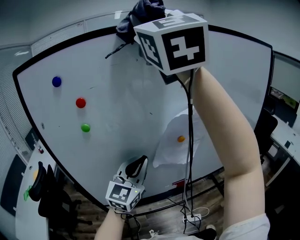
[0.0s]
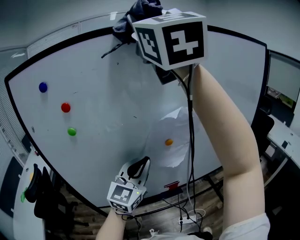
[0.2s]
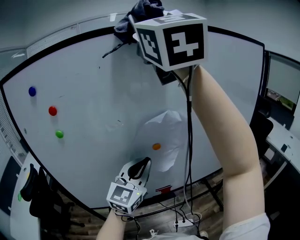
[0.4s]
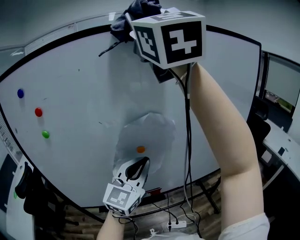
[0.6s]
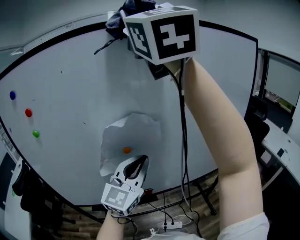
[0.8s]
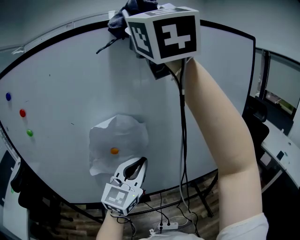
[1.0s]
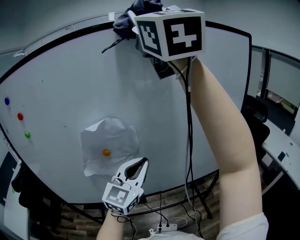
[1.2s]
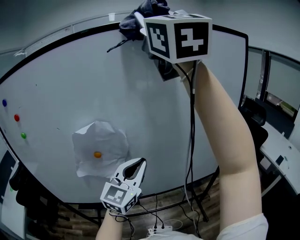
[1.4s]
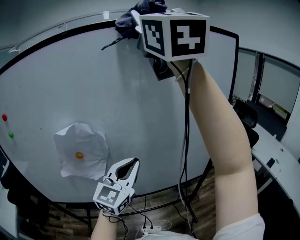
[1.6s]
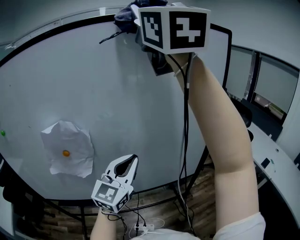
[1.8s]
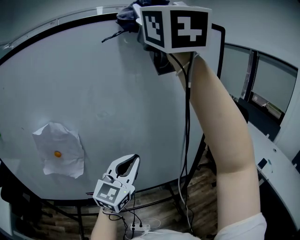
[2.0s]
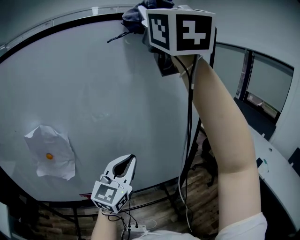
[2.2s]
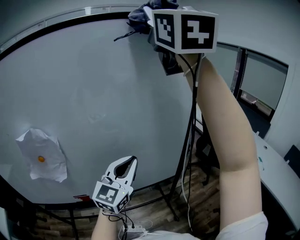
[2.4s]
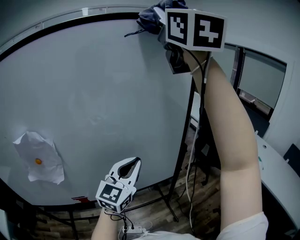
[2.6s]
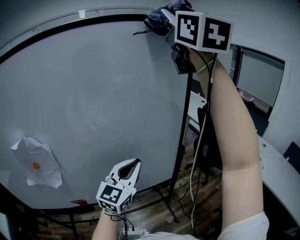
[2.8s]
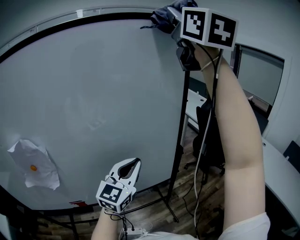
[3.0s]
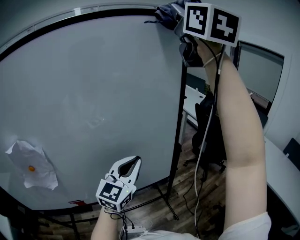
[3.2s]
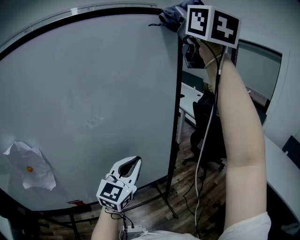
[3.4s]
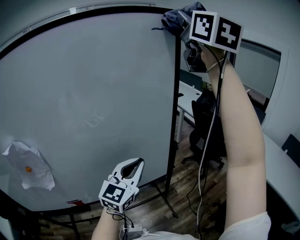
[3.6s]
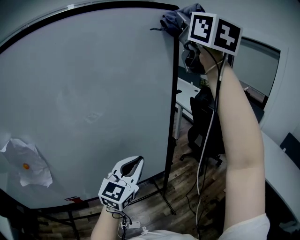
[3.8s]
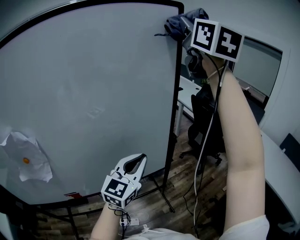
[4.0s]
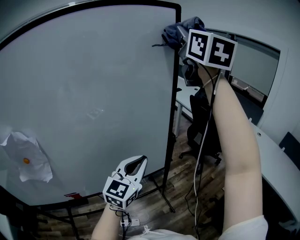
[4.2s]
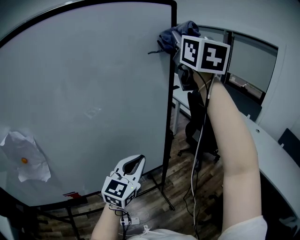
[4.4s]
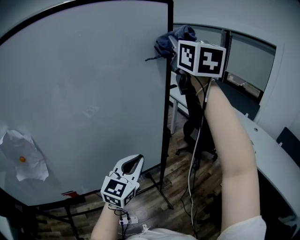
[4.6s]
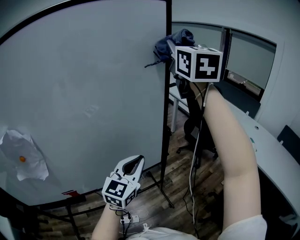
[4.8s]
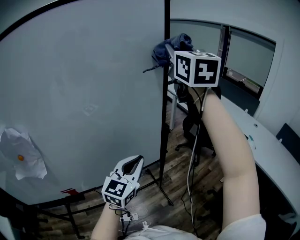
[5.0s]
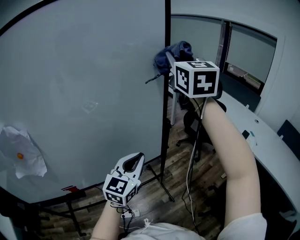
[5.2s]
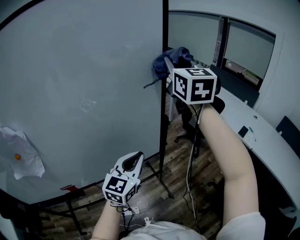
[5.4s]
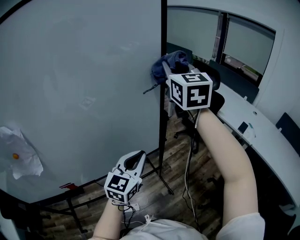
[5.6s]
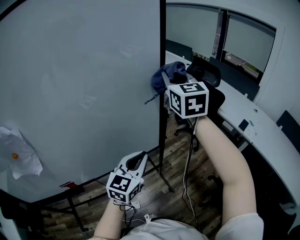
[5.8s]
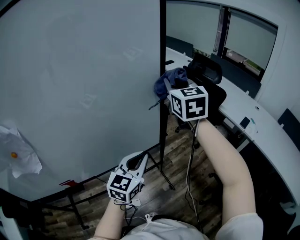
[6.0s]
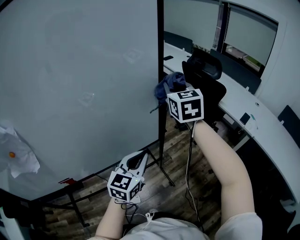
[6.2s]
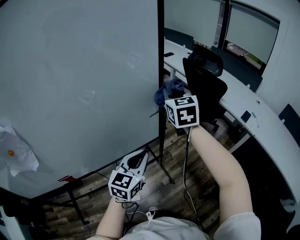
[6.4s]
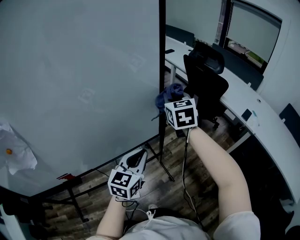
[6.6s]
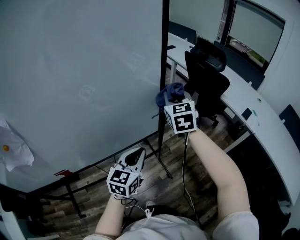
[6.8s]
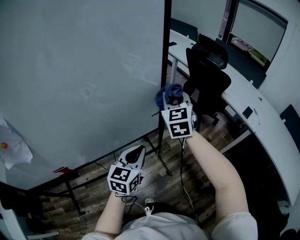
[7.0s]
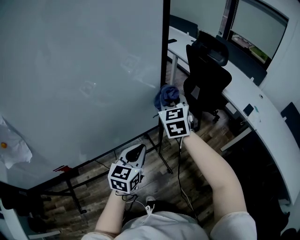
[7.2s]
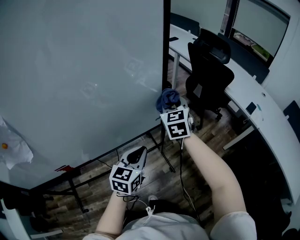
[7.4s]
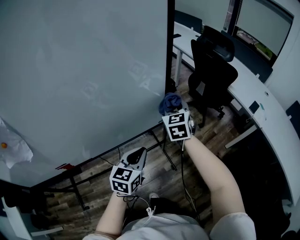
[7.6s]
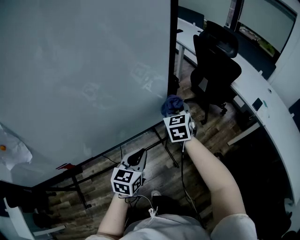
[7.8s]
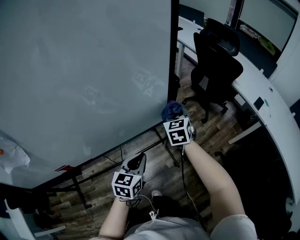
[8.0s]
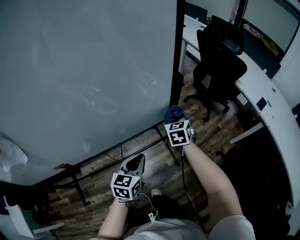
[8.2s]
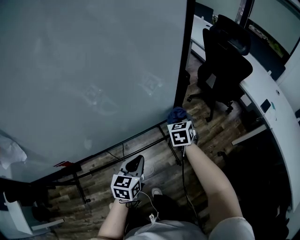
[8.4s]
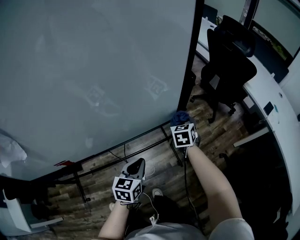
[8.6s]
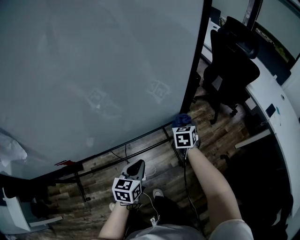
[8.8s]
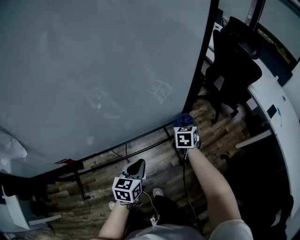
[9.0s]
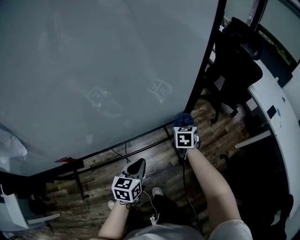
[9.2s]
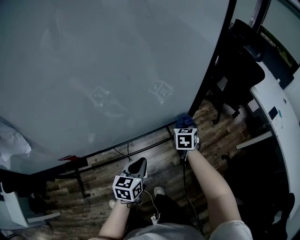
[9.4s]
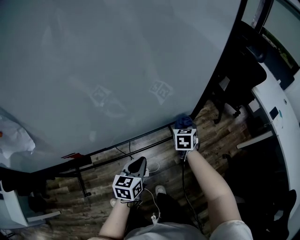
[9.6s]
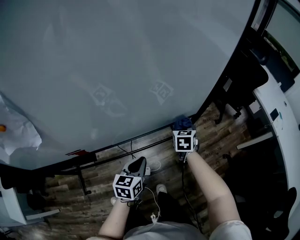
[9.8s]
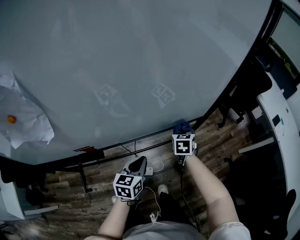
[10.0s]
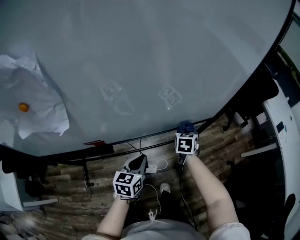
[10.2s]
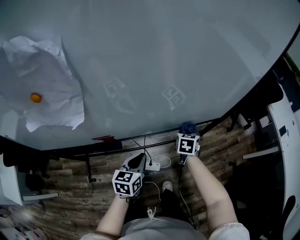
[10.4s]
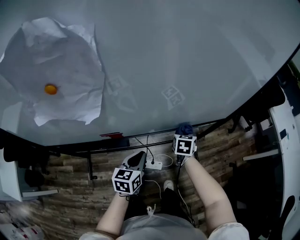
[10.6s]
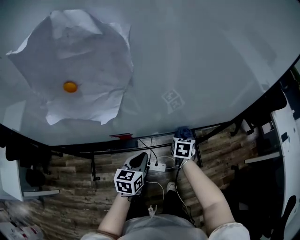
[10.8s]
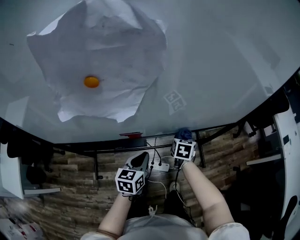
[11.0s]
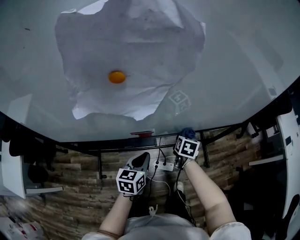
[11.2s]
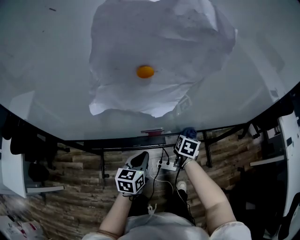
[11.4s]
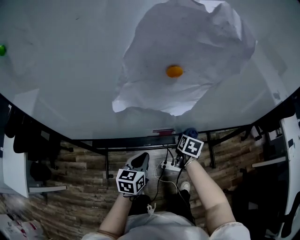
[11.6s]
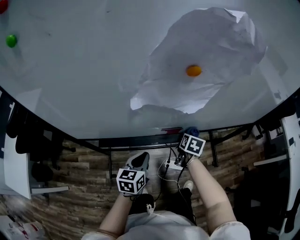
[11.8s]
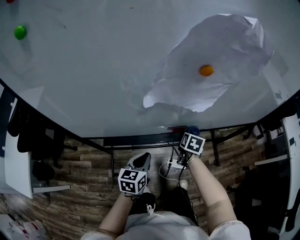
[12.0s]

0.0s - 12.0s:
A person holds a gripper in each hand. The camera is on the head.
0.0s - 1.6s: Both grippers move to the right, approximately 35 cm.
1.6s - 3.0s: Both grippers travel together to the right, approximately 25 cm.
3.0s - 4.4s: The left gripper shifts about 10 cm to the right and downward, while the right gripper heads downward and to the right, covering approximately 15 cm.
4.4s - 6.0s: The right gripper shifts some 30 cm downward, and turns by approximately 20 degrees; the left gripper shifts approximately 10 cm downward.
6.0s - 7.6s: The left gripper moves downward, some 10 cm, while the right gripper heads downward, covering approximately 25 cm.
7.6s - 9.0s: The right gripper is displaced downward by some 20 cm, and rotates roughly 20 degrees, while the left gripper moves downward and to the left, about 15 cm.
9.0s - 10.4s: Both grippers travel together to the left and backward, some 20 cm.
10.4s - 12.0s: The two grippers go approximately 30 cm to the left and backward.

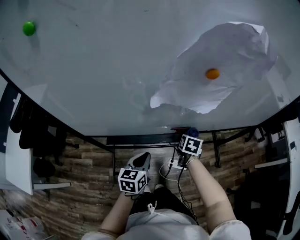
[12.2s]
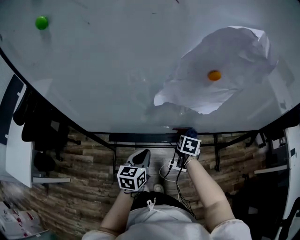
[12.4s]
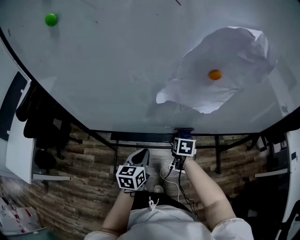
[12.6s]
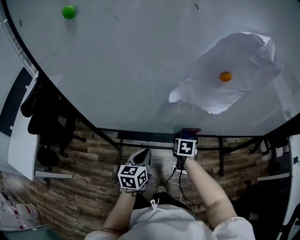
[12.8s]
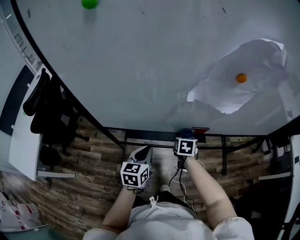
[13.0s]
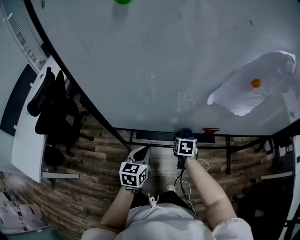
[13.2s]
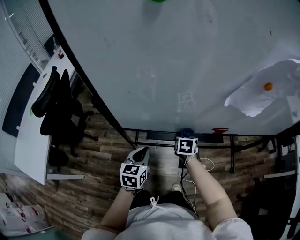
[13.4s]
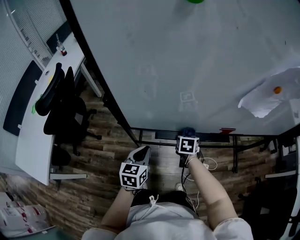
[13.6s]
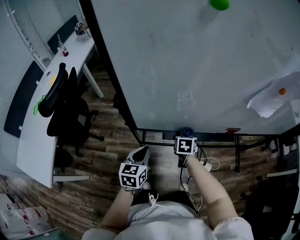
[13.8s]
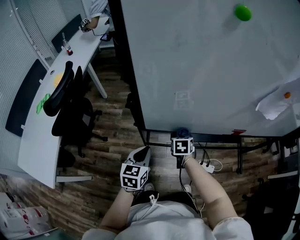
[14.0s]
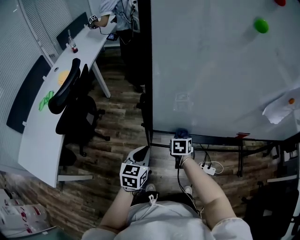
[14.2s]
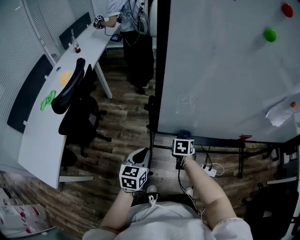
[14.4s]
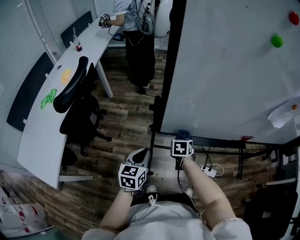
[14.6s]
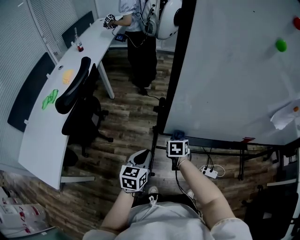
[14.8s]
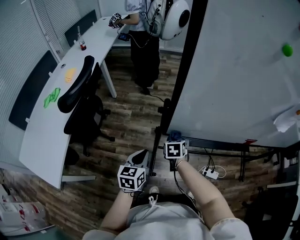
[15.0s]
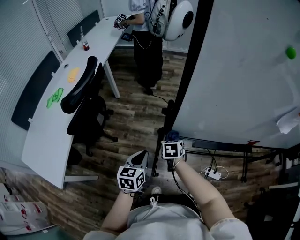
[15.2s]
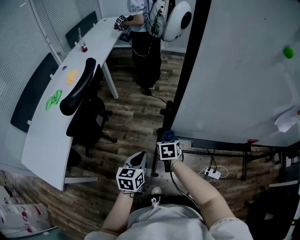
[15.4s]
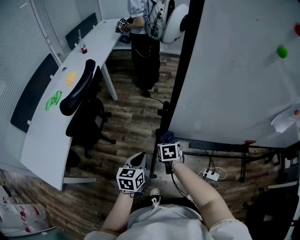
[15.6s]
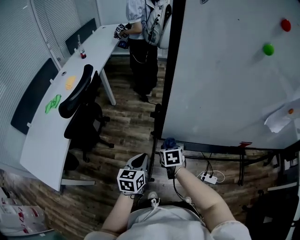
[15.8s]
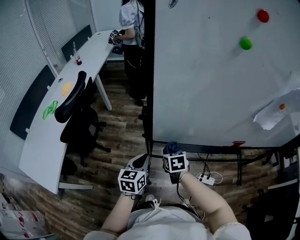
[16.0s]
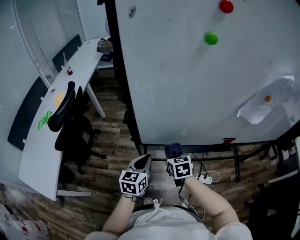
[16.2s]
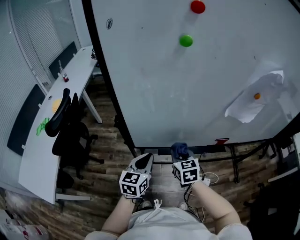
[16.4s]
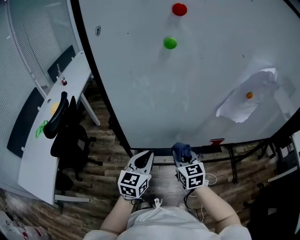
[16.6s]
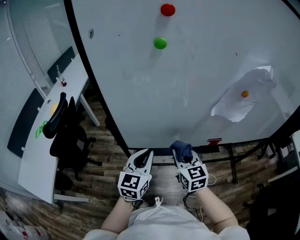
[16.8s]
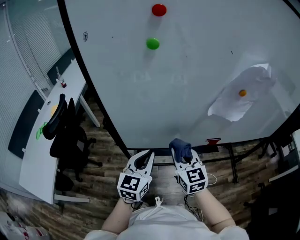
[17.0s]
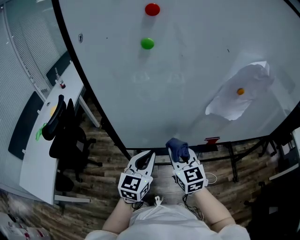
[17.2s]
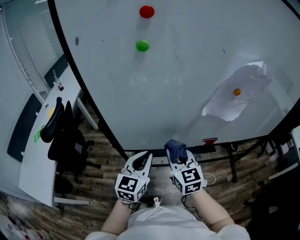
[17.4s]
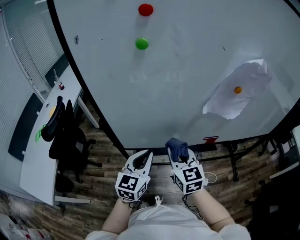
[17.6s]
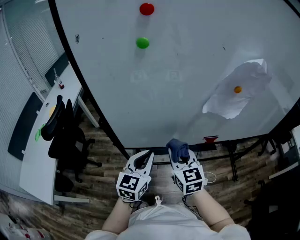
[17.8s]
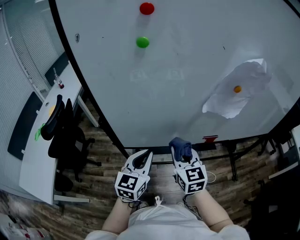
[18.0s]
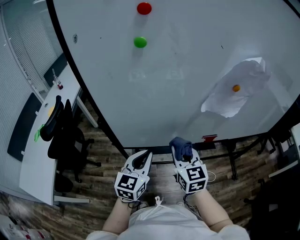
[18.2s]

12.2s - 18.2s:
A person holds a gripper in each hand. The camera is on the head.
12.2s - 13.8s: The grippers both shift to the left by approximately 30 cm. The right gripper turns by some 20 degrees.
13.8s - 15.2s: The left gripper goes about 15 cm to the left, while the right gripper is displaced to the left by approximately 25 cm.
15.2s - 16.6s: The grippers both shift to the right and upward by roughly 30 cm. The left gripper swivels about 30 degrees; the right gripper turns by some 30 degrees.
16.6s - 18.2s: The right gripper is displaced upward by some 5 cm, while the left gripper ends up about 5 cm from where it was.

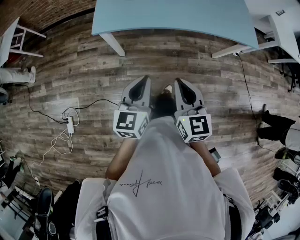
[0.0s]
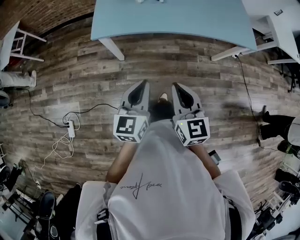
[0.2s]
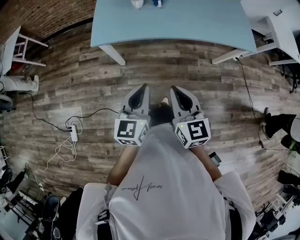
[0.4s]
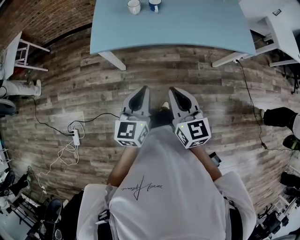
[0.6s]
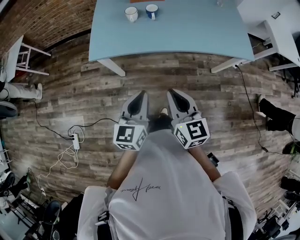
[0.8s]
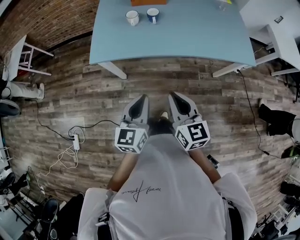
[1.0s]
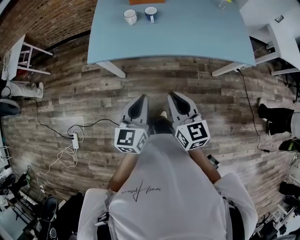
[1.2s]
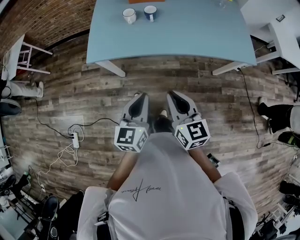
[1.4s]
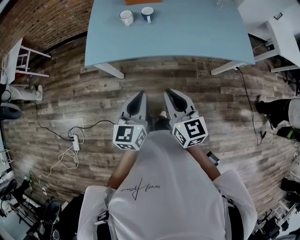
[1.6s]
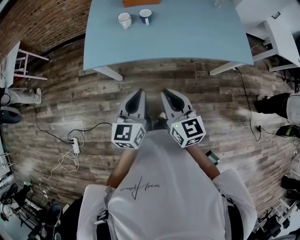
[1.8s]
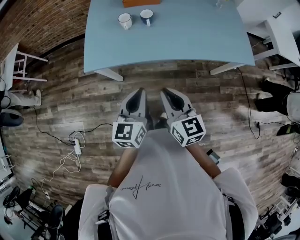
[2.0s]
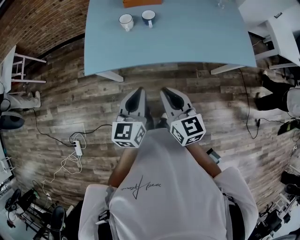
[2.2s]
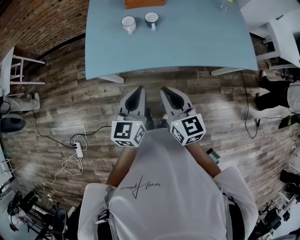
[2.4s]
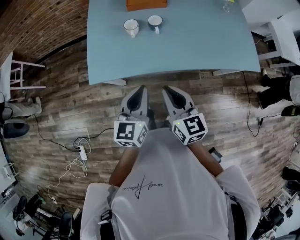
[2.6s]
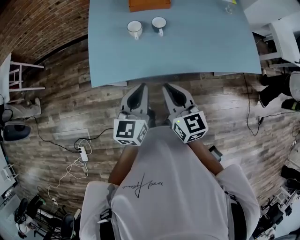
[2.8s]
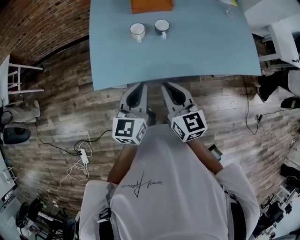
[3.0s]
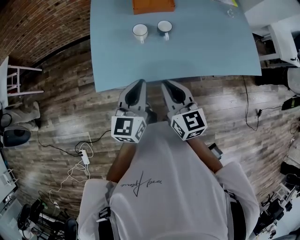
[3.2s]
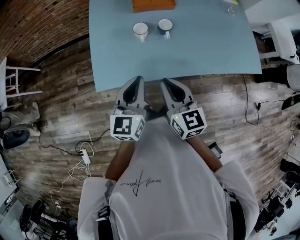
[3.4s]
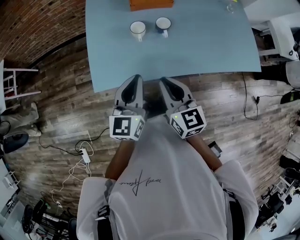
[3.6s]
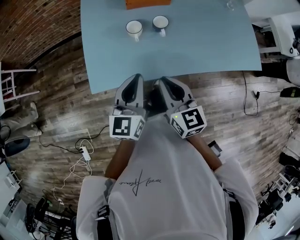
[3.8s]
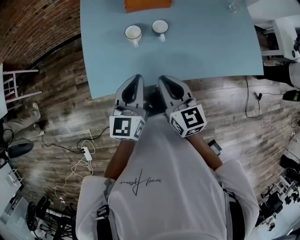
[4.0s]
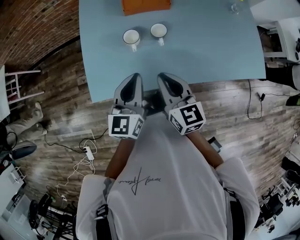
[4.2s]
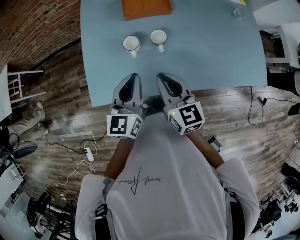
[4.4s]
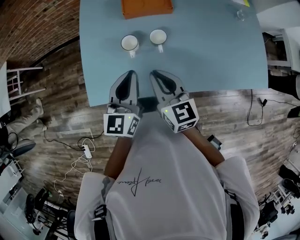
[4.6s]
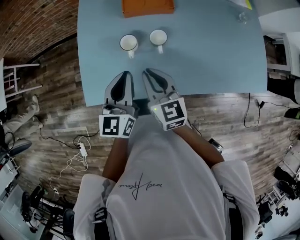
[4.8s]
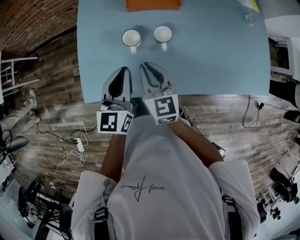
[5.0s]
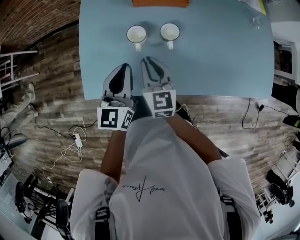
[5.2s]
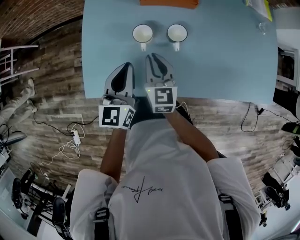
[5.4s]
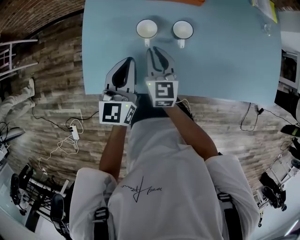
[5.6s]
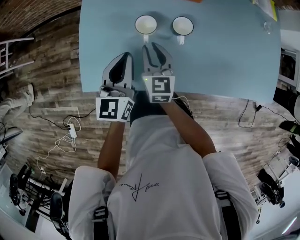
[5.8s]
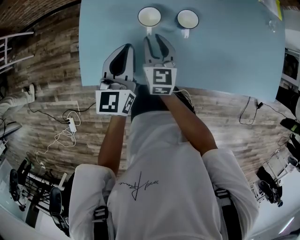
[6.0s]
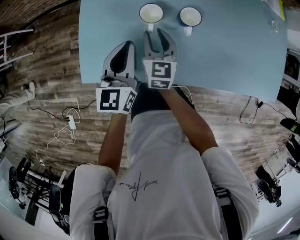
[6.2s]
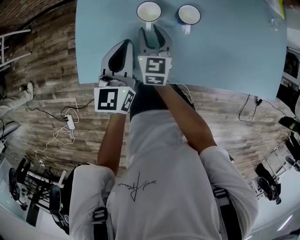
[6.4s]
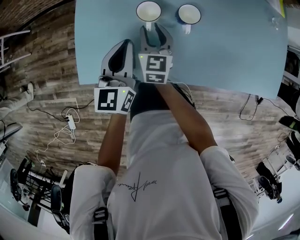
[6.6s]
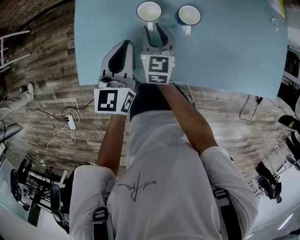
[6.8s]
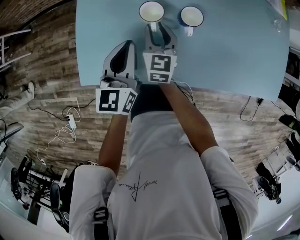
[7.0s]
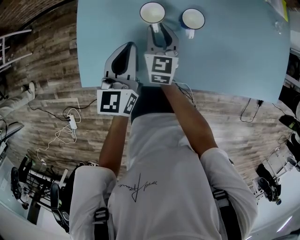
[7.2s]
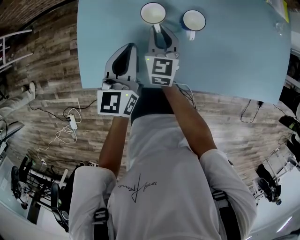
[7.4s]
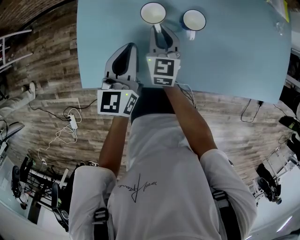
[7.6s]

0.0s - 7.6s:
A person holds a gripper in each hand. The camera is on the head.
0.0s - 1.6s: The left gripper travels forward and to the right by about 10 cm; the right gripper heads forward, covering roughly 10 cm.
1.6s - 3.0s: The two grippers go approximately 20 cm forward and to the left.
3.0s - 4.6s: The grippers both shift forward by approximately 15 cm.
4.6s - 6.0s: The right gripper moves downward and forward, roughly 15 cm; the left gripper travels downward and to the left by some 10 cm.
6.0s - 7.6s: There are only small adjustments of the grippers.
